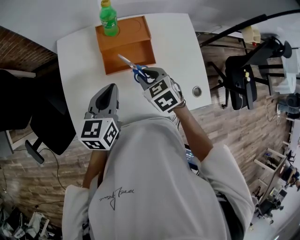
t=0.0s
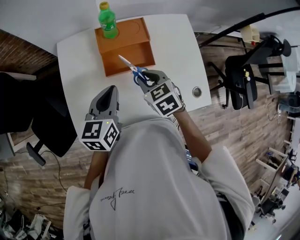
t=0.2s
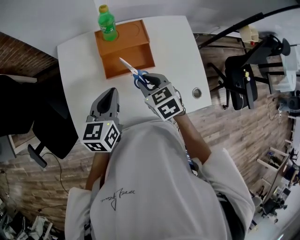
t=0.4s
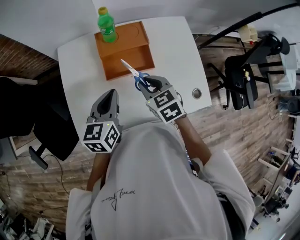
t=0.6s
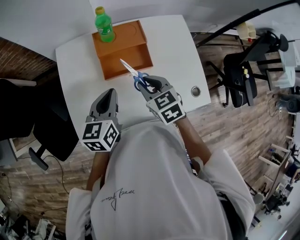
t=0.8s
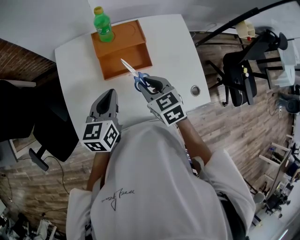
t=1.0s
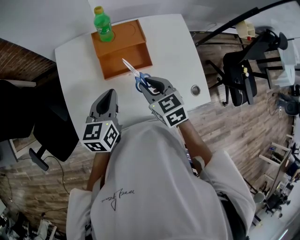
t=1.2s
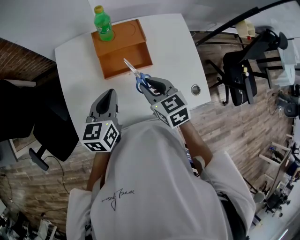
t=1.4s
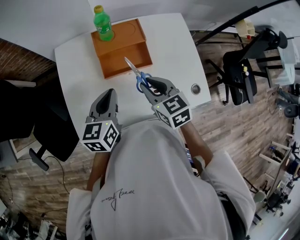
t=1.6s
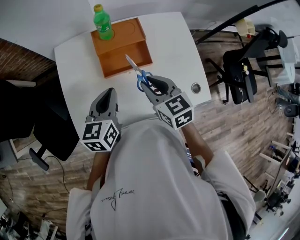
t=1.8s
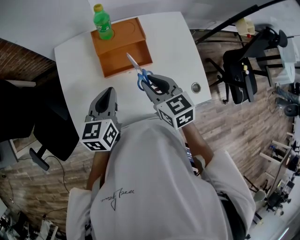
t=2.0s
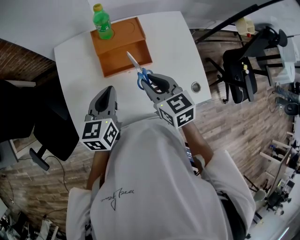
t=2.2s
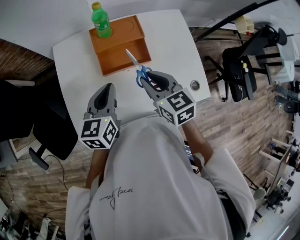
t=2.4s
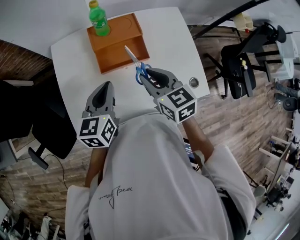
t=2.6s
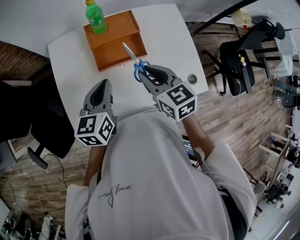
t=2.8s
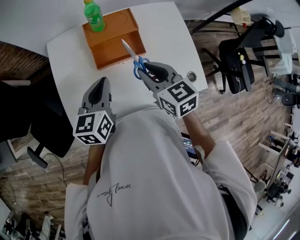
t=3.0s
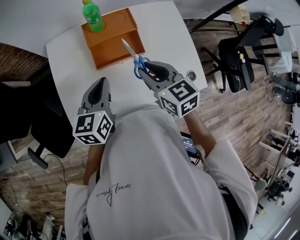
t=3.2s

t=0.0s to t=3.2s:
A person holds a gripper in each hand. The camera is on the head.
t=0.0s to t=1.6s: The right gripper goes approximately 5 cm upward.
t=1.6s to t=3.2s: The grippers stay close to where they were, moving slightly.

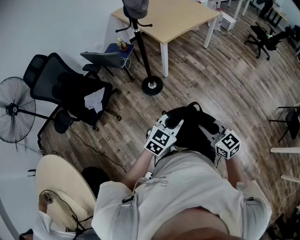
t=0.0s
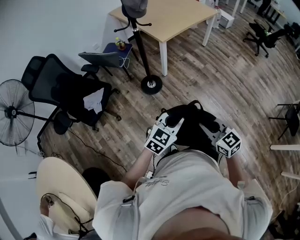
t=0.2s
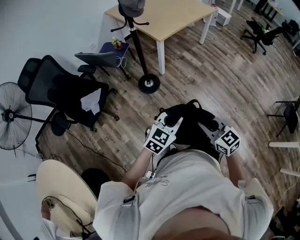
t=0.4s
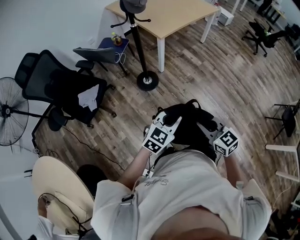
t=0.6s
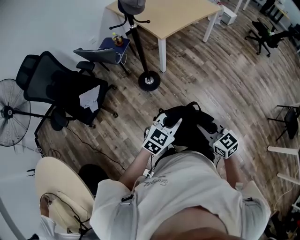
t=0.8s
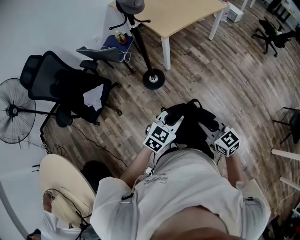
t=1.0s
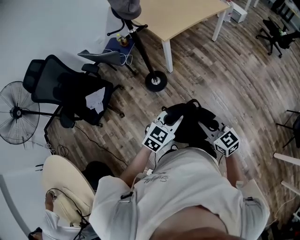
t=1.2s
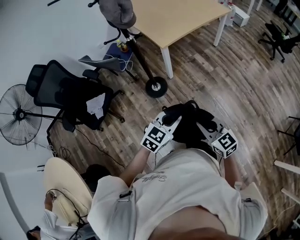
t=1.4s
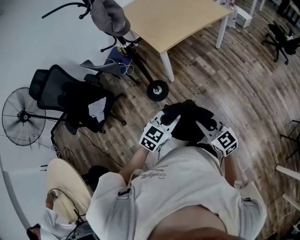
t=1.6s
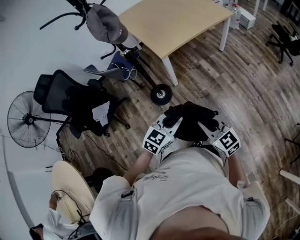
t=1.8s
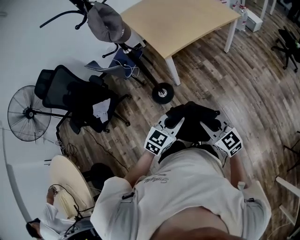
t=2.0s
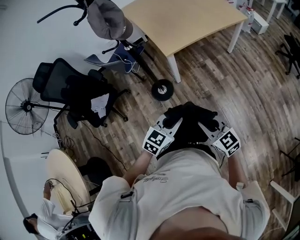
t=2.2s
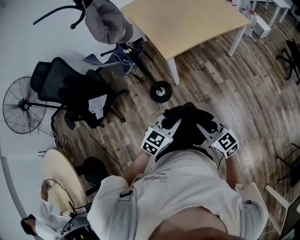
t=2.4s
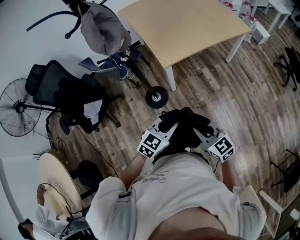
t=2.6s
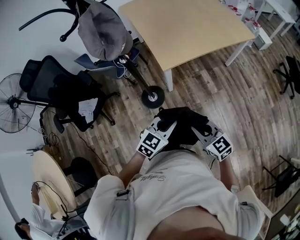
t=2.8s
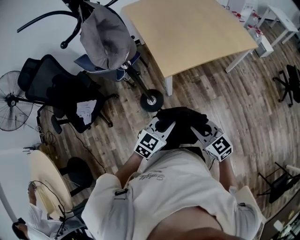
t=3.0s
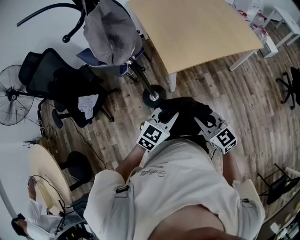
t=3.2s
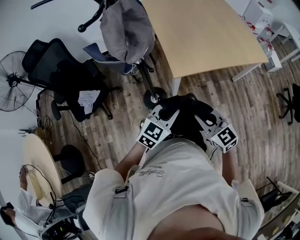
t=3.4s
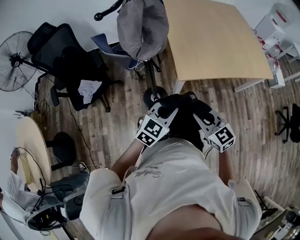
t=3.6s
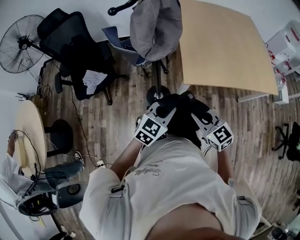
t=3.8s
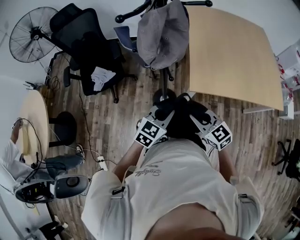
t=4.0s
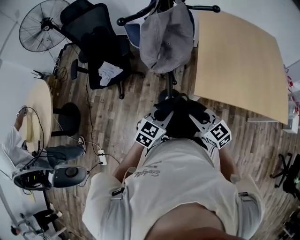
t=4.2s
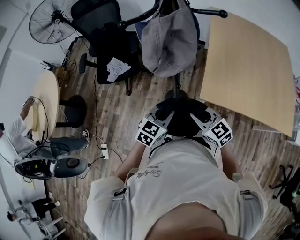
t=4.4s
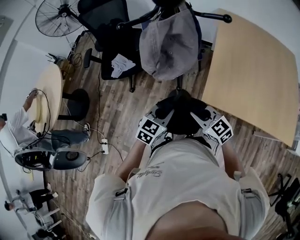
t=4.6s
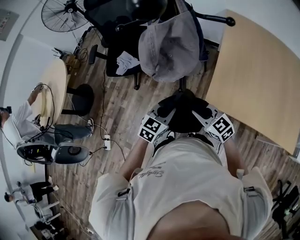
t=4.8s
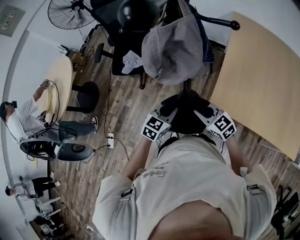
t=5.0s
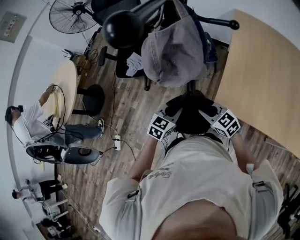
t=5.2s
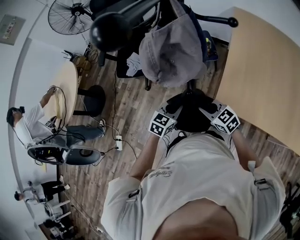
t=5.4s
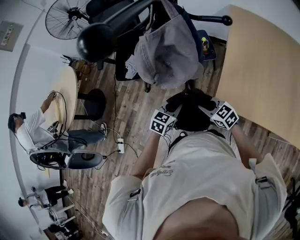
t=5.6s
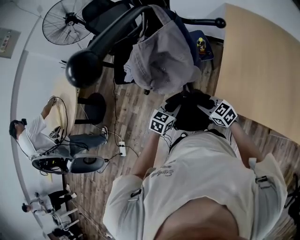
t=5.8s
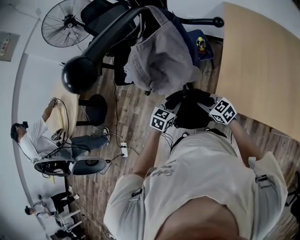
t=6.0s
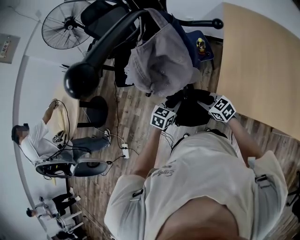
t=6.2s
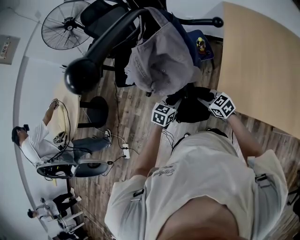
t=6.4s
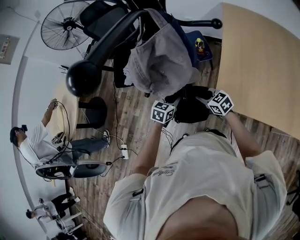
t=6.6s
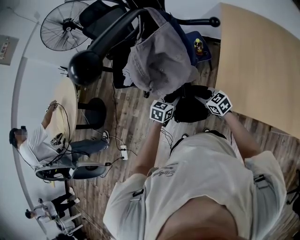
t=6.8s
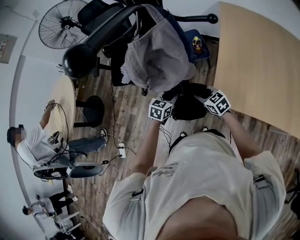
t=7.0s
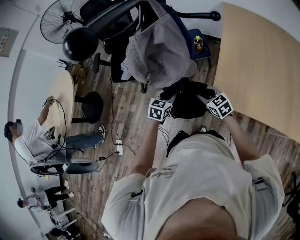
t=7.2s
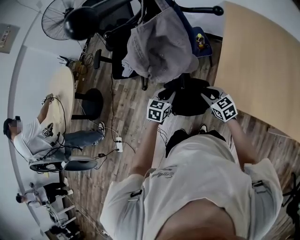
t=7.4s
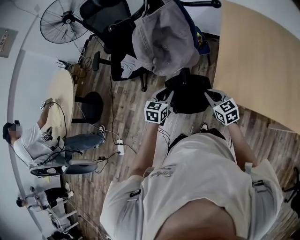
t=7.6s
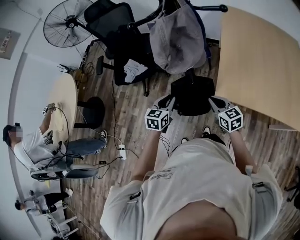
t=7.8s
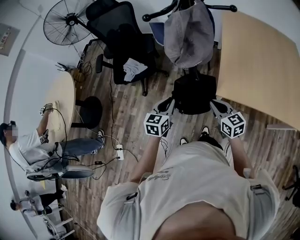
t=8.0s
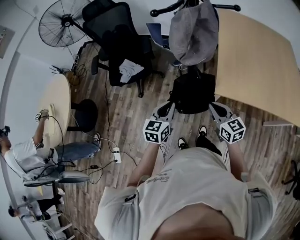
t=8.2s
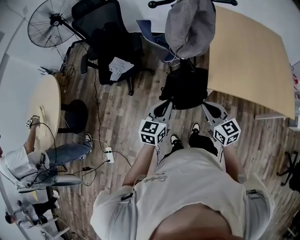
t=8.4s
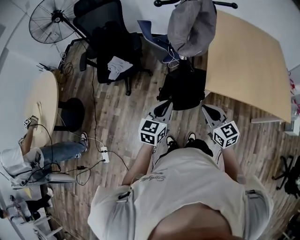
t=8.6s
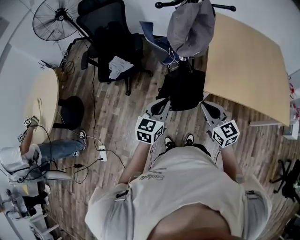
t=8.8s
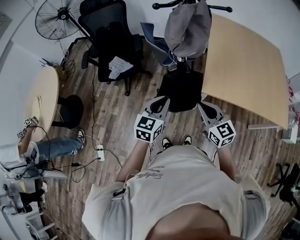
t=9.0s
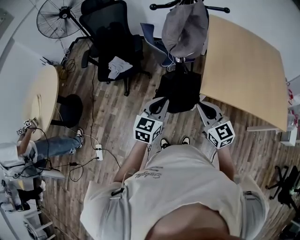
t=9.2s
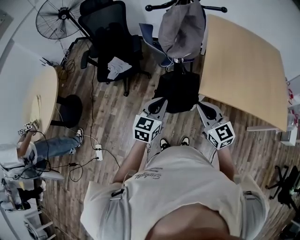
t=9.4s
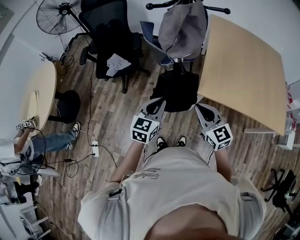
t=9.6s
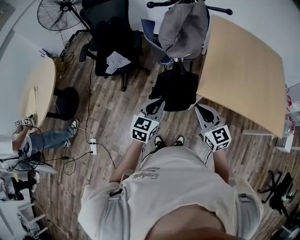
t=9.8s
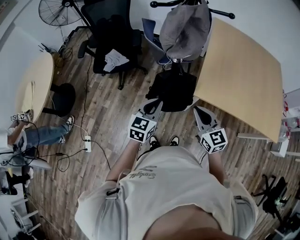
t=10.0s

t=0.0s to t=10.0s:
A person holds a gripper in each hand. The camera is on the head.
t=0.0s to t=1.4s: The grippers both shift forward by roughly 20 cm.
t=1.4s to t=2.8s: The two grippers go roughly 25 cm forward.
t=2.8s to t=4.2s: The right gripper ends up approximately 25 cm from where it was, and swivels some 40 degrees, while the left gripper changes place by some 20 cm, and swivels approximately 40 degrees.
t=4.2s to t=5.8s: The two grippers go some 15 cm forward and downward. The right gripper turns by roughly 20 degrees.
t=5.8s to t=7.2s: The right gripper moves approximately 5 cm, and opens up.
t=7.2s to t=8.6s: Both grippers travel together backward and upward, some 20 cm. The right gripper changes its angle by about 20 degrees, and closes its fingers.

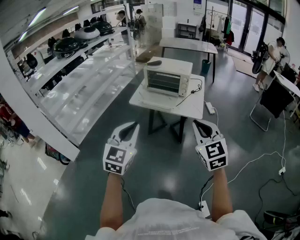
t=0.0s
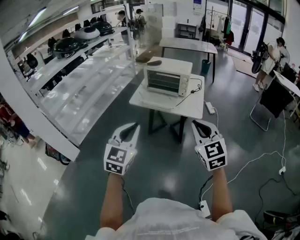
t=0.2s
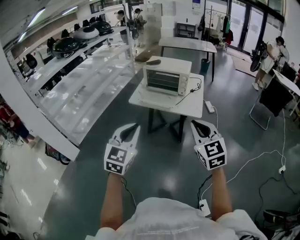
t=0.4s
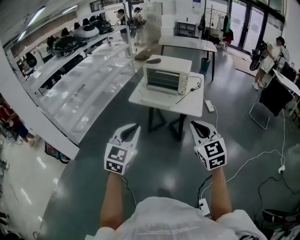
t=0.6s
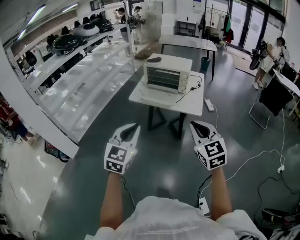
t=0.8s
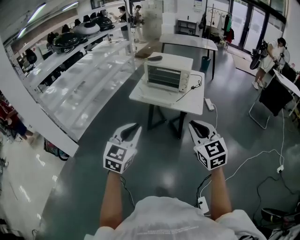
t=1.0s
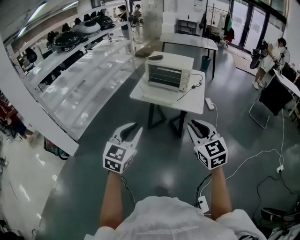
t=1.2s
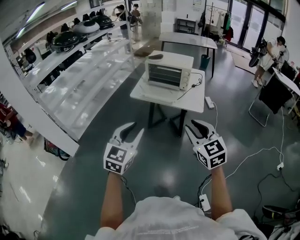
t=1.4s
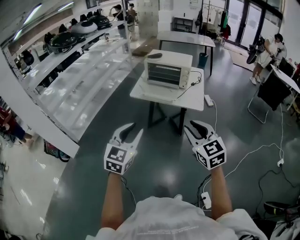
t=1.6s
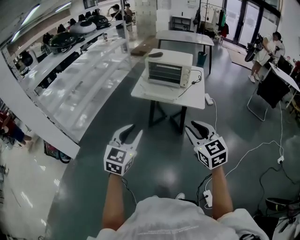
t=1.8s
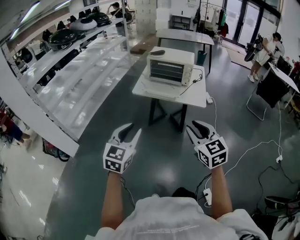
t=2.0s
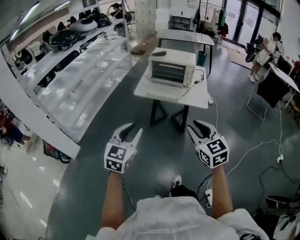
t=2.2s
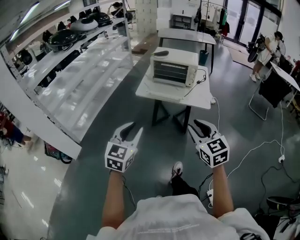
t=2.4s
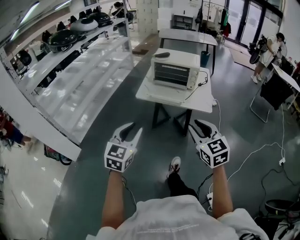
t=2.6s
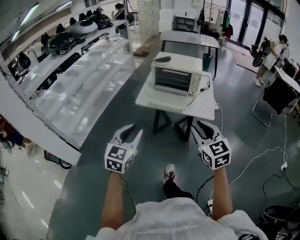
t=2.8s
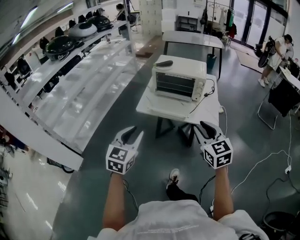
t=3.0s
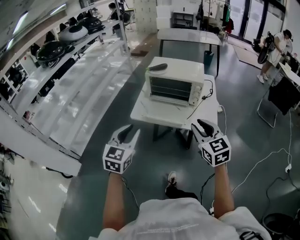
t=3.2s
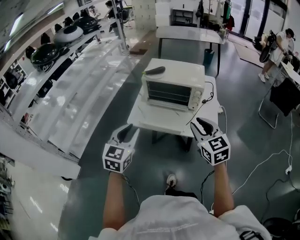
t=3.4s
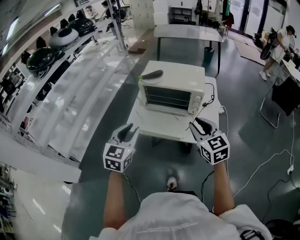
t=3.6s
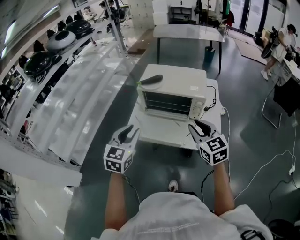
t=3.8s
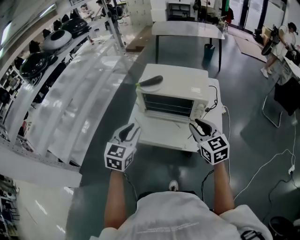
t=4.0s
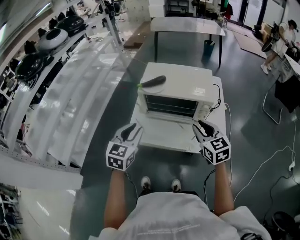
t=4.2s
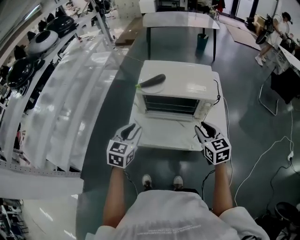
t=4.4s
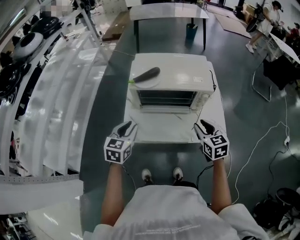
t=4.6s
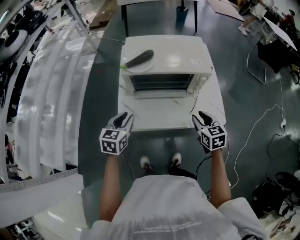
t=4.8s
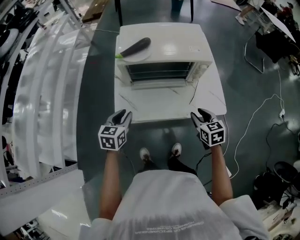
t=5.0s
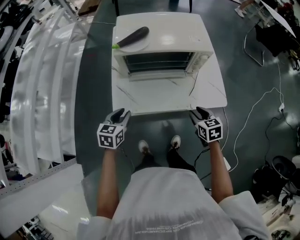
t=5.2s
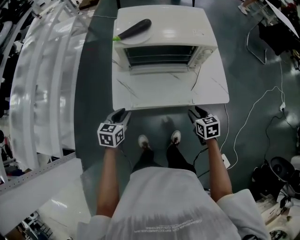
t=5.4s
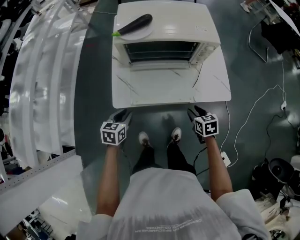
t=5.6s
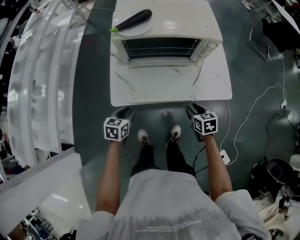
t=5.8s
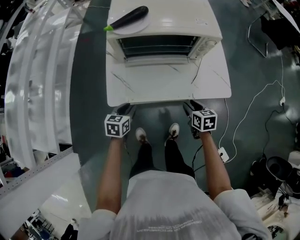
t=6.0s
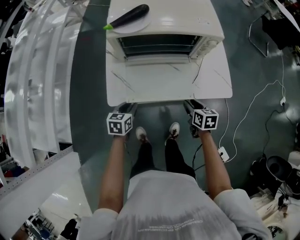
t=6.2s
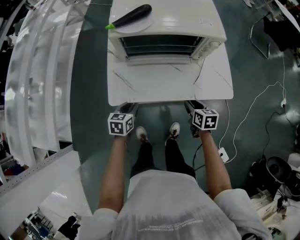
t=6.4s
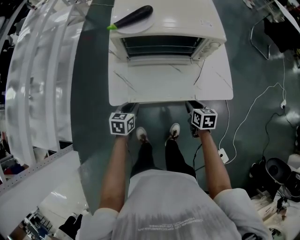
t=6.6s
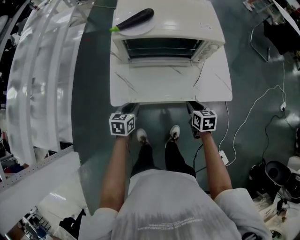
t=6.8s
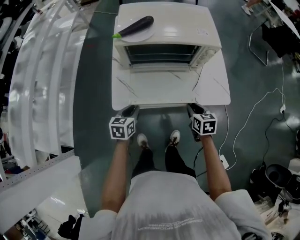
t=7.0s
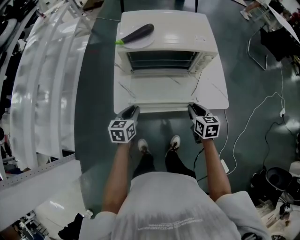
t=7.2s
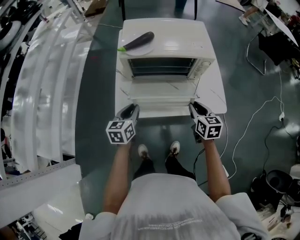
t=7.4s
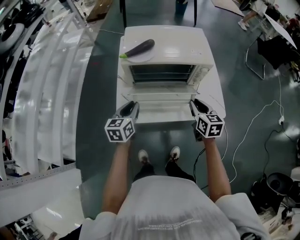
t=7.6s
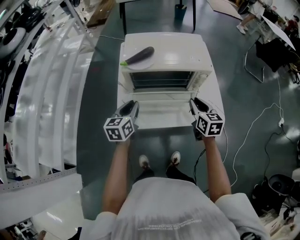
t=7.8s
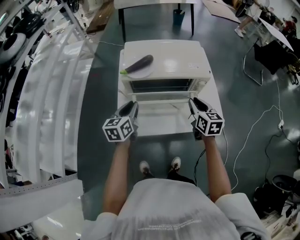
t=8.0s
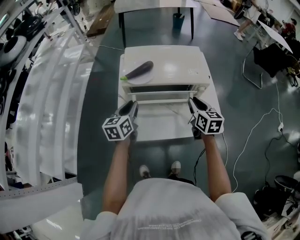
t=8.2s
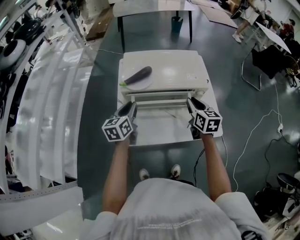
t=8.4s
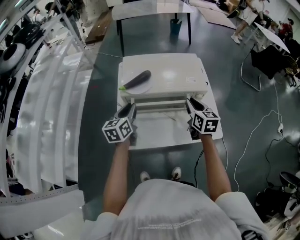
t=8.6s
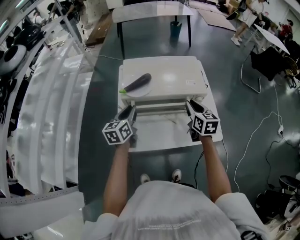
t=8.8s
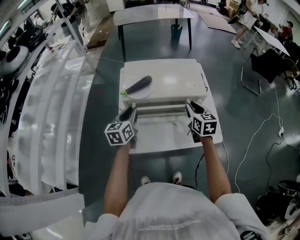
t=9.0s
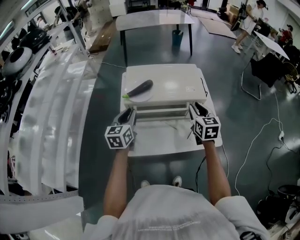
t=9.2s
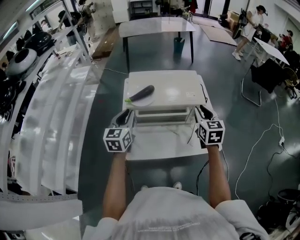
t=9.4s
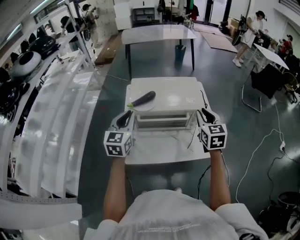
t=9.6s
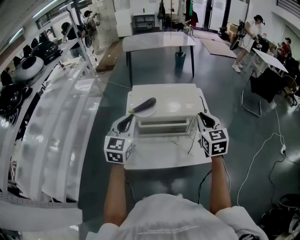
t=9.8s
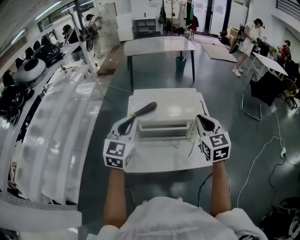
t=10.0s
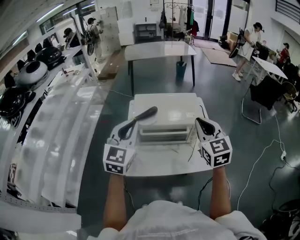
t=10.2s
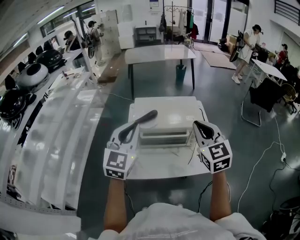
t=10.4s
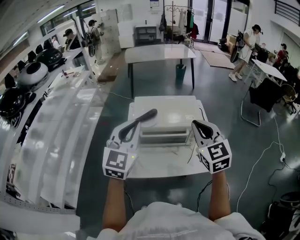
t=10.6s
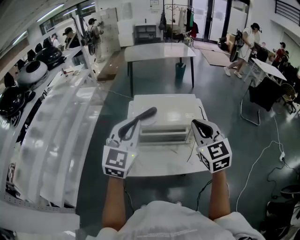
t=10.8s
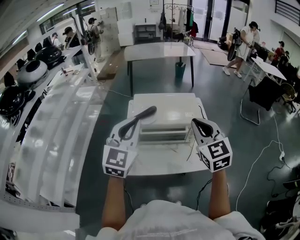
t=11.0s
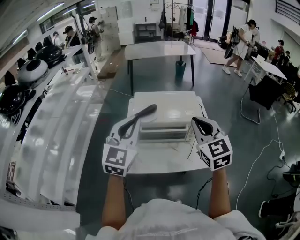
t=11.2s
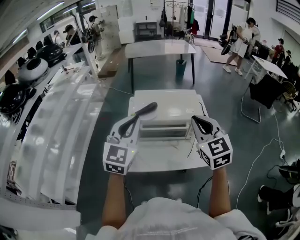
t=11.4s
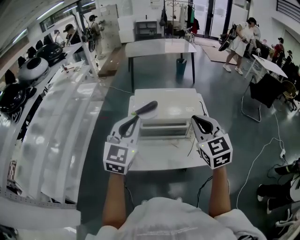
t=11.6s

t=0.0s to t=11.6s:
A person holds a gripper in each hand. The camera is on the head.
t=0.0s to t=1.4s: The right gripper shifts by roughly 5 cm, and opens its fingers, while the left gripper opens.
t=1.4s to t=2.8s: The two grippers go roughly 15 cm forward and to the left.
t=2.8s to t=4.4s: Both grippers move forward, about 40 cm.
t=4.4s to t=5.8s: The left gripper is displaced downward by roughly 25 cm, and turns by approximately 30 degrees, while the right gripper travels downward and backward by about 25 cm, and swivels approximately 30 degrees.
t=5.8s to t=7.2s: Both grippers travel together upward, some 5 cm.
t=7.2s to t=8.8s: The two grippers go roughly 25 cm forward and upward.
t=8.8s to t=10.2s: The grippers both shift upward by about 20 cm. The left gripper rolls clockwise, seen from behind, by approximately 40 degrees. Meanwhile the right gripper rotates roughly 30 degrees.
t=10.2s to t=11.6s: The grippers move only a little.
